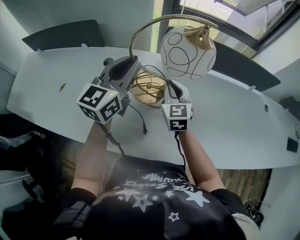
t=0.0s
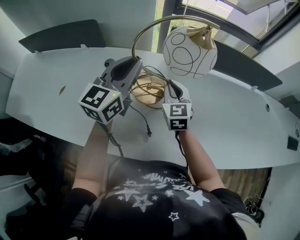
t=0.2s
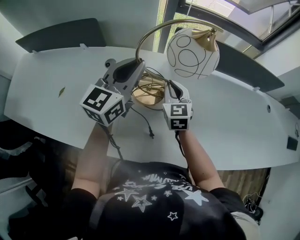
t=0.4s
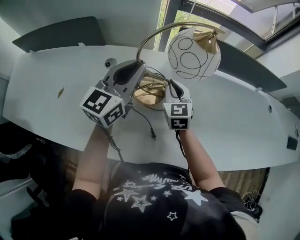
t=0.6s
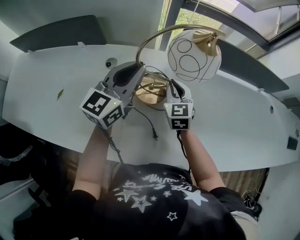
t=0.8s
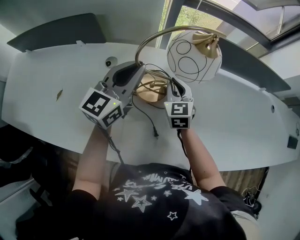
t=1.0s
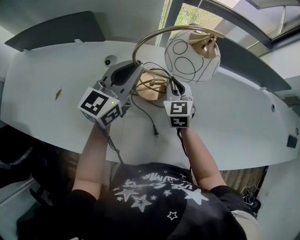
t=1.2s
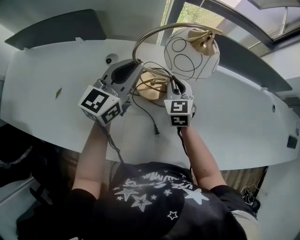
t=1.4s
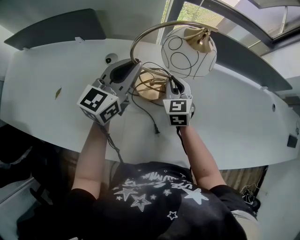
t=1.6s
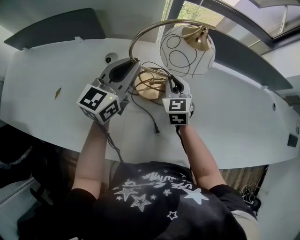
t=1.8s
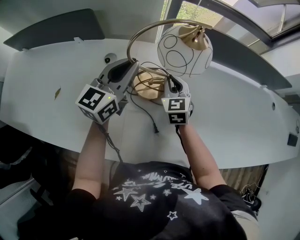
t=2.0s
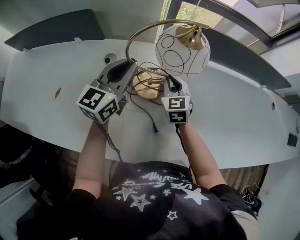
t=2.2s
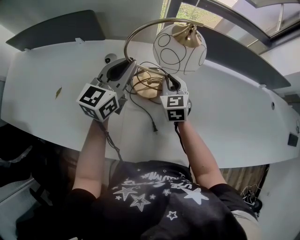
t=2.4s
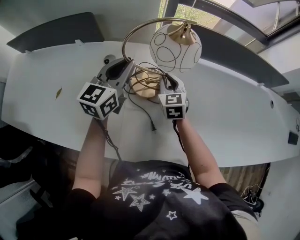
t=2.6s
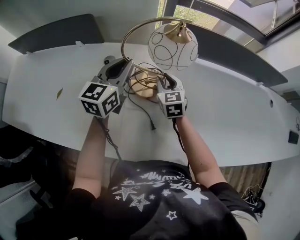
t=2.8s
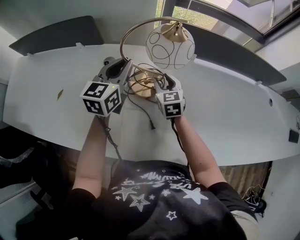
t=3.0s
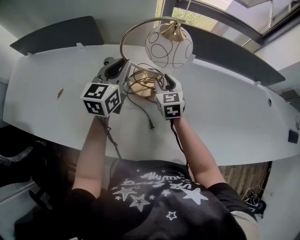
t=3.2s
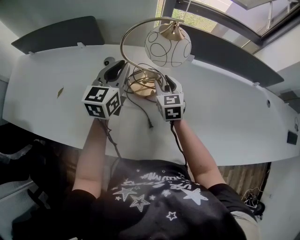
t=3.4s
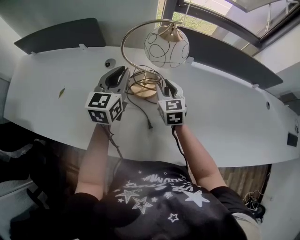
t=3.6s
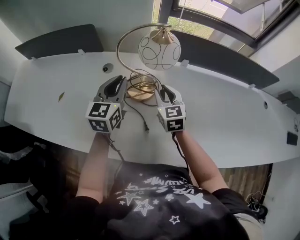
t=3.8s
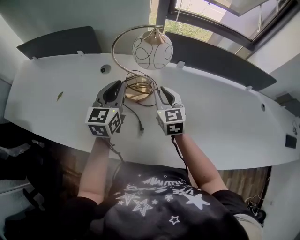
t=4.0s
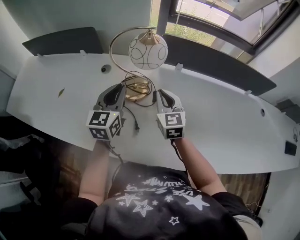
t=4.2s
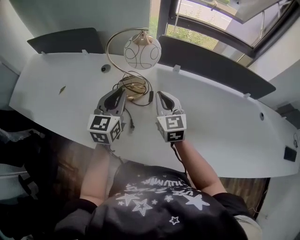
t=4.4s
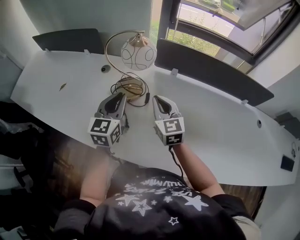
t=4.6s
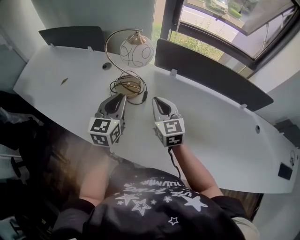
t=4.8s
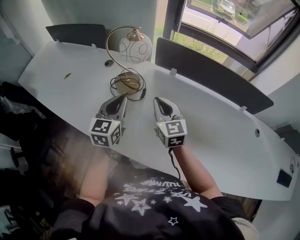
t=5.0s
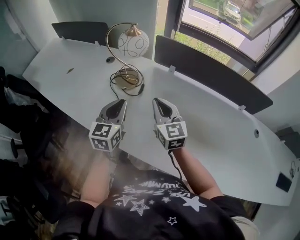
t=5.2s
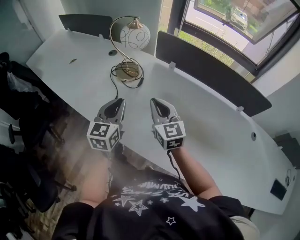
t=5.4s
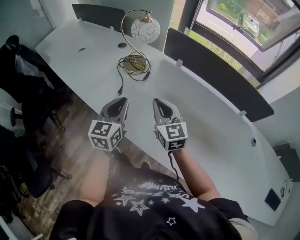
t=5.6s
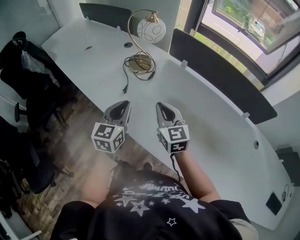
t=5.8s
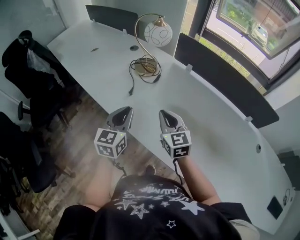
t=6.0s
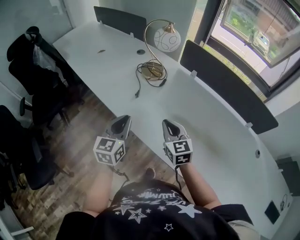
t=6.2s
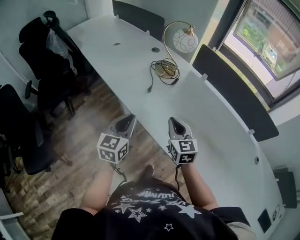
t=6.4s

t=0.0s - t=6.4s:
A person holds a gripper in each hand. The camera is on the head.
t=0.0s - t=1.6s: The two grippers go approximately 15 cm downward, to the left and forward.
t=1.6s - t=3.2s: The right gripper opens up.
t=3.2s - t=4.8s: The right gripper travels backward, upward and to the right by roughly 20 cm, changes its angle by about 20 degrees, and closes its fingers. The left gripper goes approximately 20 cm backward and to the right.
t=4.8s - t=6.4s: Both grippers travel together backward, some 25 cm. The left gripper changes its angle by about 20 degrees.

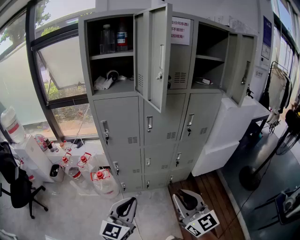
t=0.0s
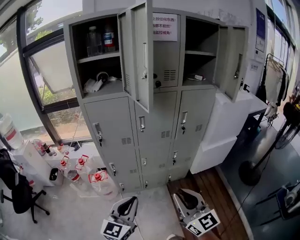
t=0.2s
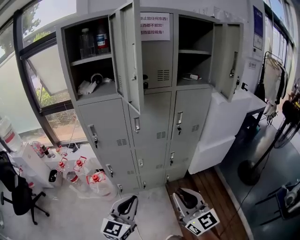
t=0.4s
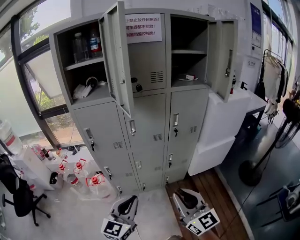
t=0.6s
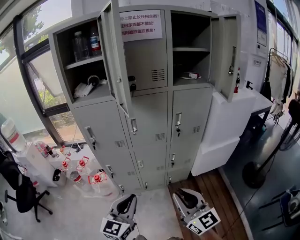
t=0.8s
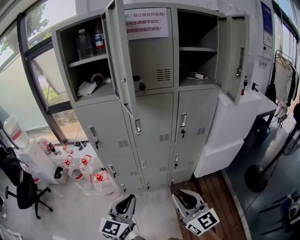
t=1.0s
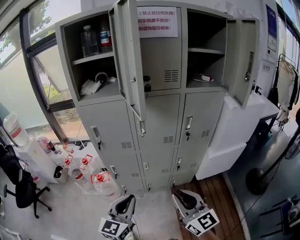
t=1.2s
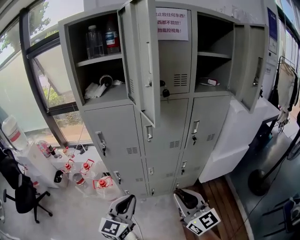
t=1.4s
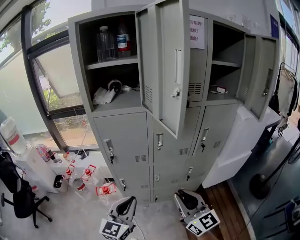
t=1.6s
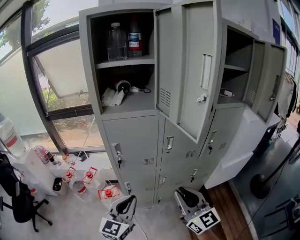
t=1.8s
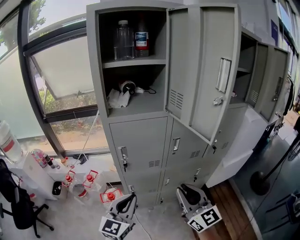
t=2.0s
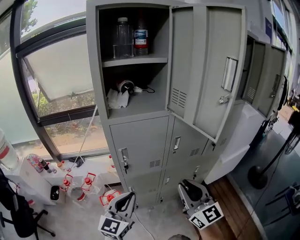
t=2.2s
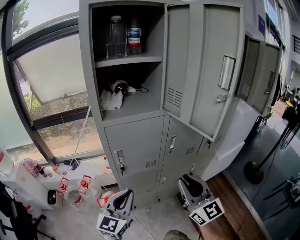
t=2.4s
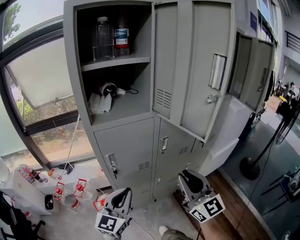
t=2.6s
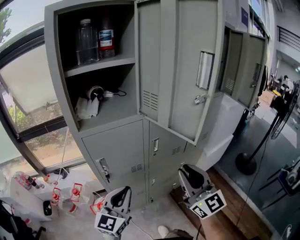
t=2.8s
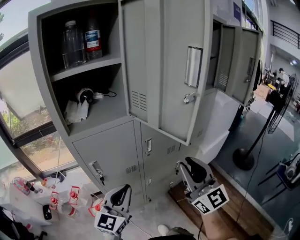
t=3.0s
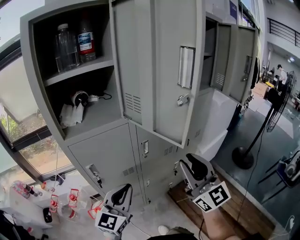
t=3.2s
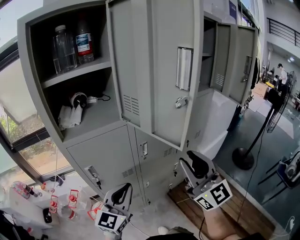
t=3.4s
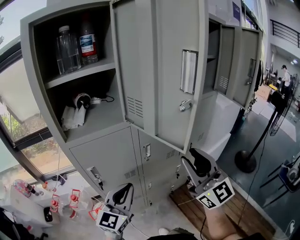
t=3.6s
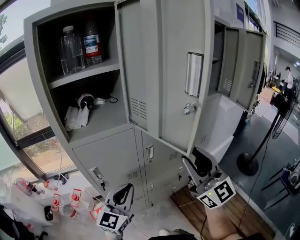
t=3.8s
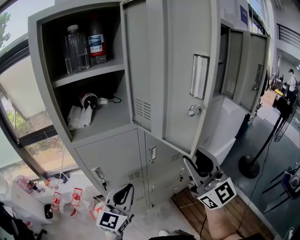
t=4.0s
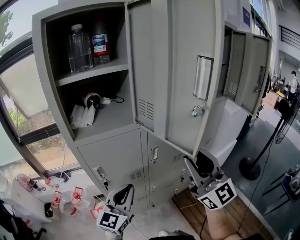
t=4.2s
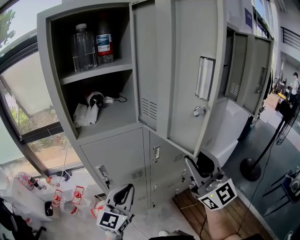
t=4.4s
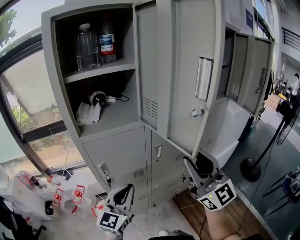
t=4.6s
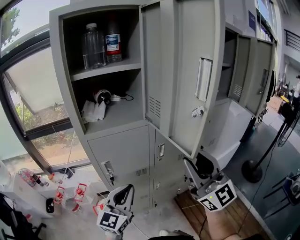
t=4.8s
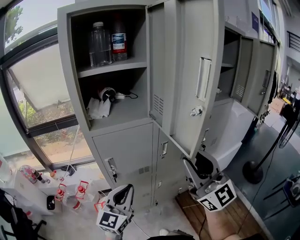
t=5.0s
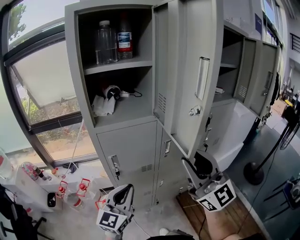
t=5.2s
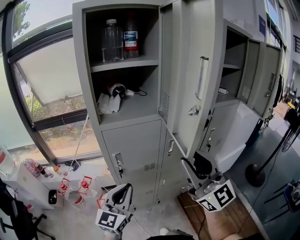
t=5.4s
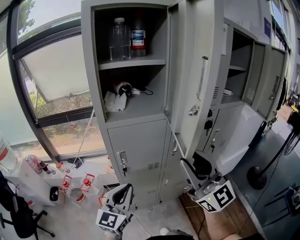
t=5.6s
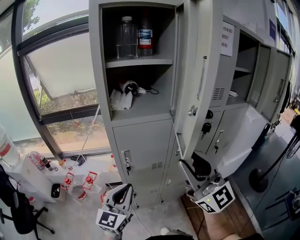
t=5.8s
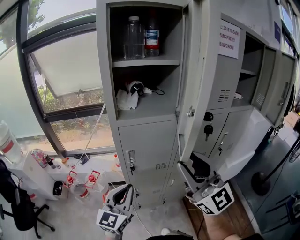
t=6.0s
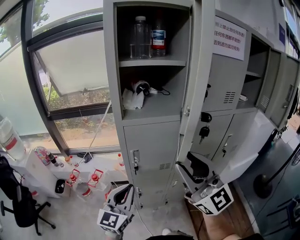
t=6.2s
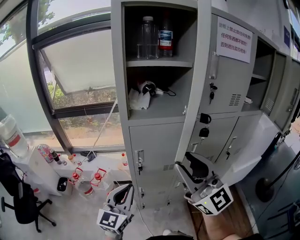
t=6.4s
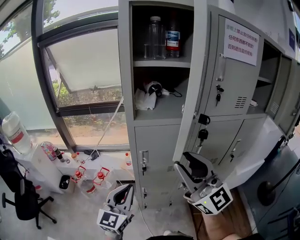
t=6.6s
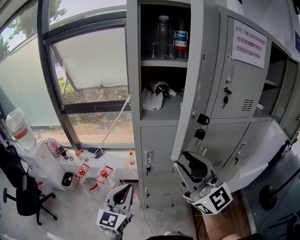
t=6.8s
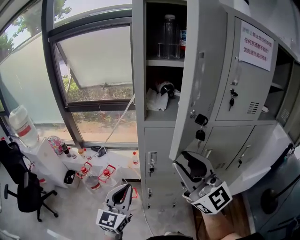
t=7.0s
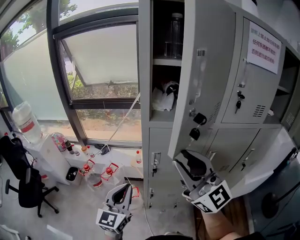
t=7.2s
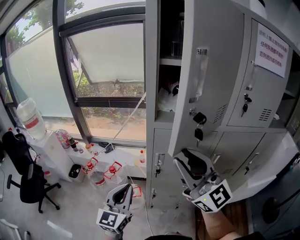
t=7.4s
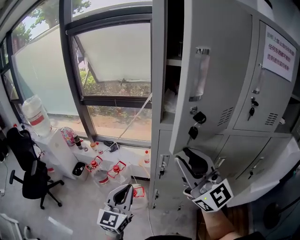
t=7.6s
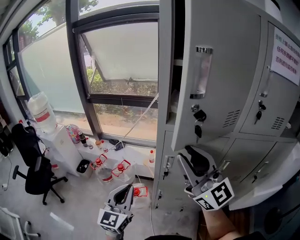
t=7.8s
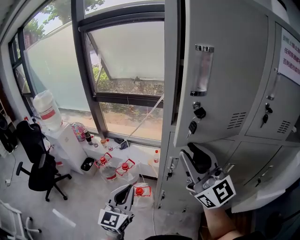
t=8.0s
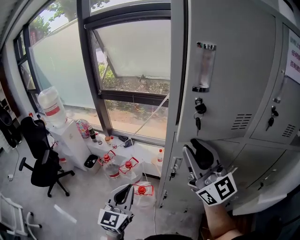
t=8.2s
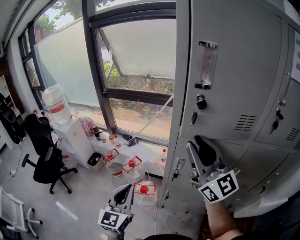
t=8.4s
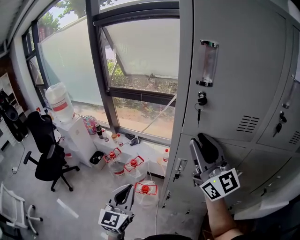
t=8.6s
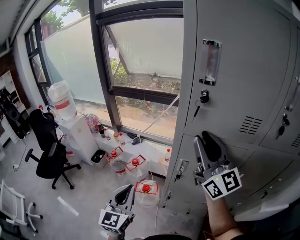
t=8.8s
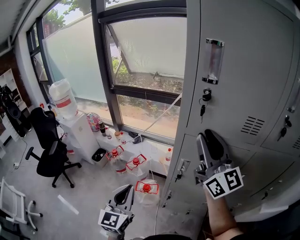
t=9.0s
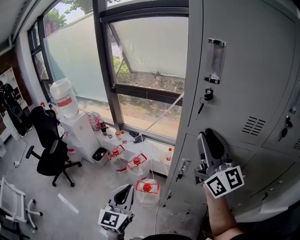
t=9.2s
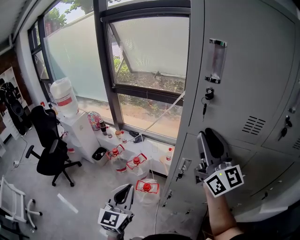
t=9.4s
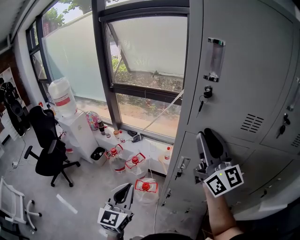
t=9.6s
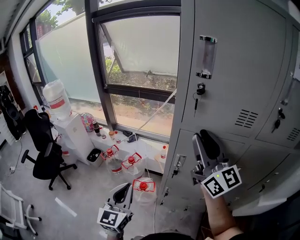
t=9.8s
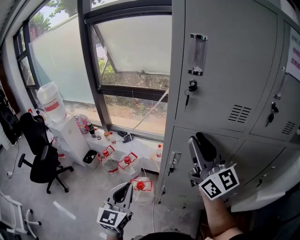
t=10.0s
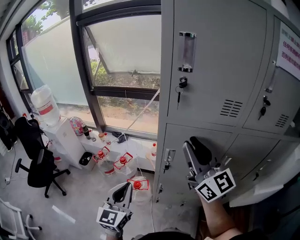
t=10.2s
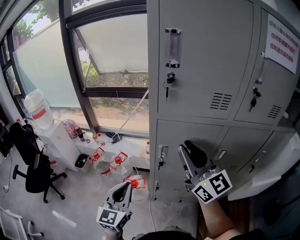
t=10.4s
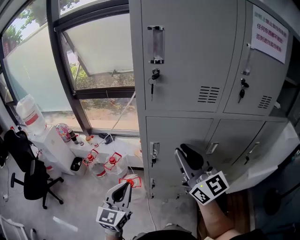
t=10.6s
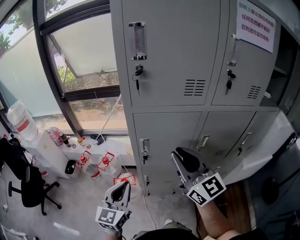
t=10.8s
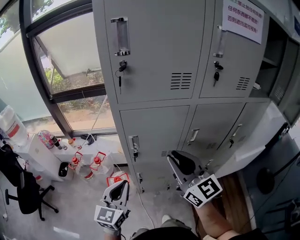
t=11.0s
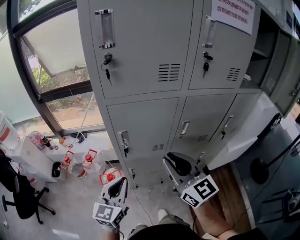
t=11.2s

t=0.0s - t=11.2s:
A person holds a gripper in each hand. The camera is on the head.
t=0.0s - t=1.6s: The two grippers go roughly 15 cm forward.
t=1.6s - t=3.2s: The left gripper is displaced forward by some 15 cm, travels to the left and back again, roughly 15 cm each way, and swivels approximately 20 degrees; the right gripper travels upward and forward by some 15 cm, travels to the left and back again, approximately 15 cm each way, and turns by about 30 degrees.
t=3.2s - t=4.8s: The right gripper goes about 5 cm upward.
t=4.8s - t=6.4s: The two grippers go roughly 15 cm to the left.
t=6.4s - t=8.0s: The left gripper heads to the left, covering about 10 cm, and rotates roughly 20 degrees, while the right gripper moves forward and to the left, some 15 cm.
t=8.0s - t=9.6s: The right gripper shifts about 5 cm forward.
t=9.6s - t=11.2s: The left gripper shifts about 15 cm to the right, and turns by approximately 30 degrees, while the right gripper is displaced backward, downward and to the right by some 25 cm, and swivels about 30 degrees.

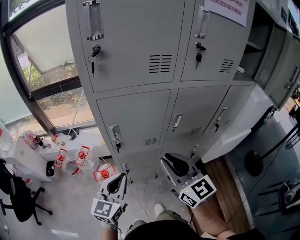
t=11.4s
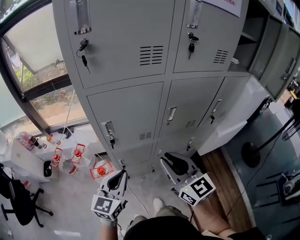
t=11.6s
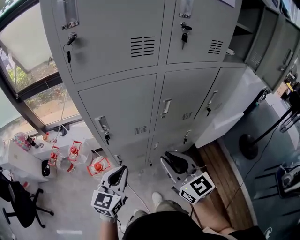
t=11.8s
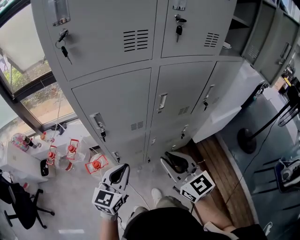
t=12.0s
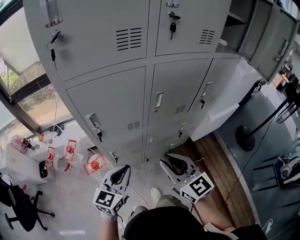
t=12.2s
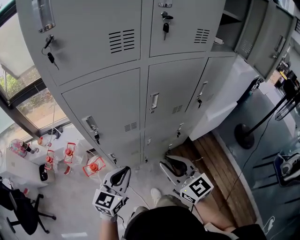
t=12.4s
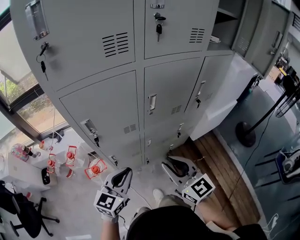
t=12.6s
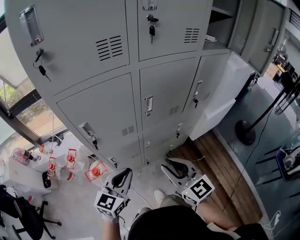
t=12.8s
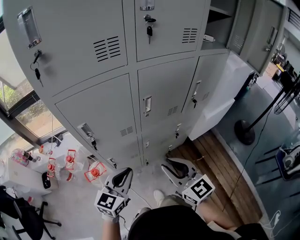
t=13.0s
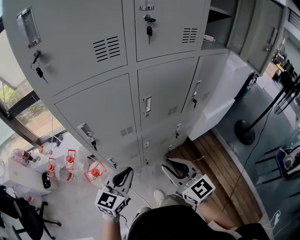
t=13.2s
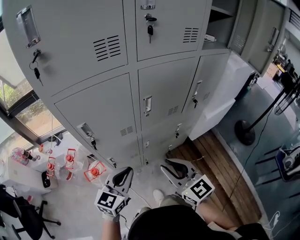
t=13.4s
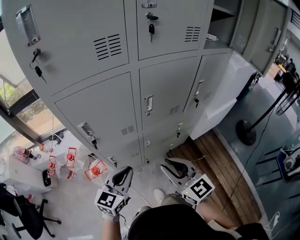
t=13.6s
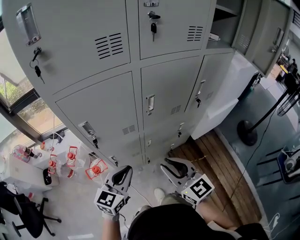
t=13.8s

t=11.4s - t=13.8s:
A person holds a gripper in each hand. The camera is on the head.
t=11.4s - t=12.6s: The right gripper travels downward and to the right by approximately 10 cm. The left gripper heads to the right and downward, covering some 10 cm, and changes its angle by some 20 degrees.
t=12.6s - t=13.8s: The grippers stay close to where they were, moving slightly.

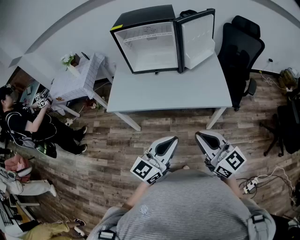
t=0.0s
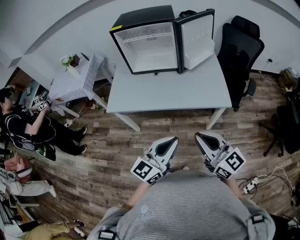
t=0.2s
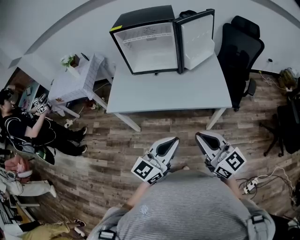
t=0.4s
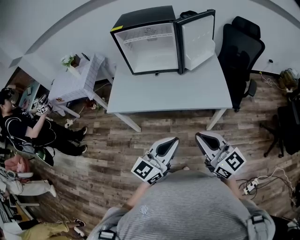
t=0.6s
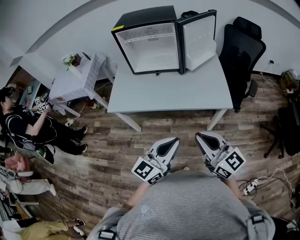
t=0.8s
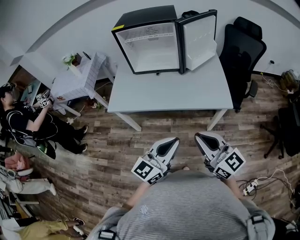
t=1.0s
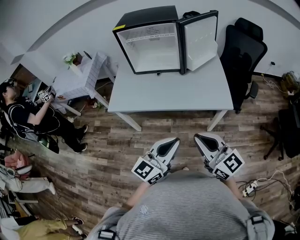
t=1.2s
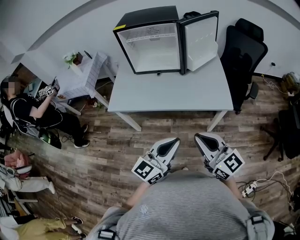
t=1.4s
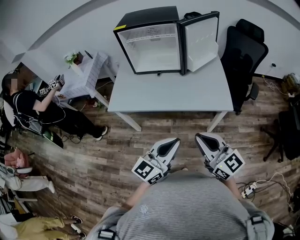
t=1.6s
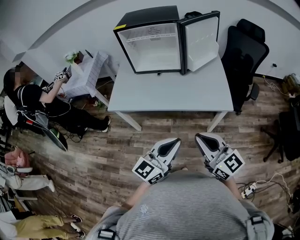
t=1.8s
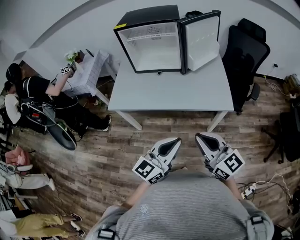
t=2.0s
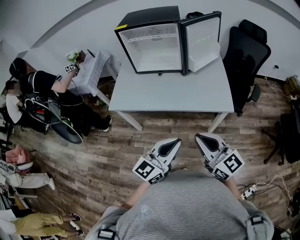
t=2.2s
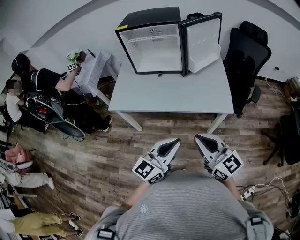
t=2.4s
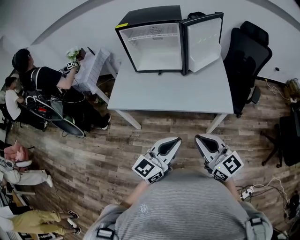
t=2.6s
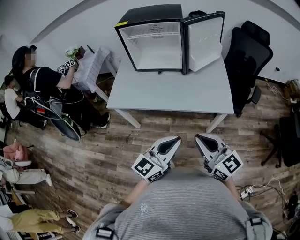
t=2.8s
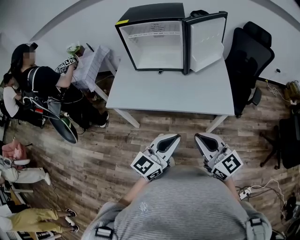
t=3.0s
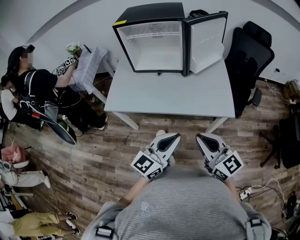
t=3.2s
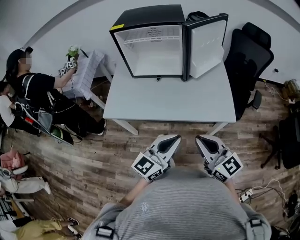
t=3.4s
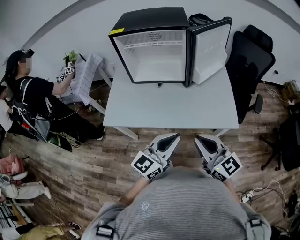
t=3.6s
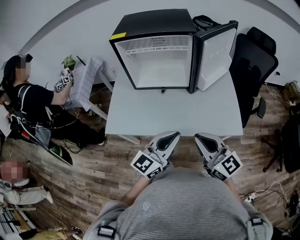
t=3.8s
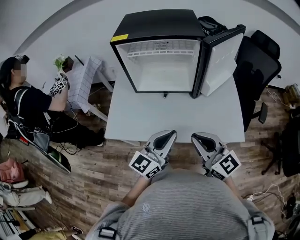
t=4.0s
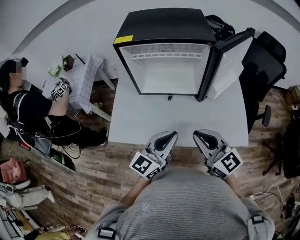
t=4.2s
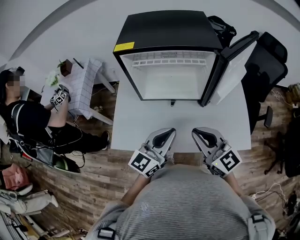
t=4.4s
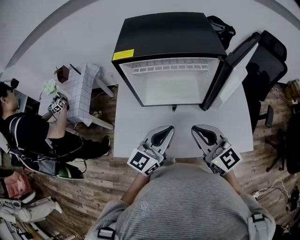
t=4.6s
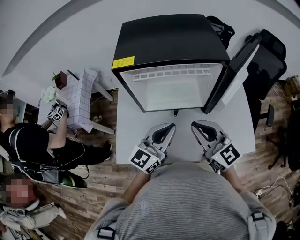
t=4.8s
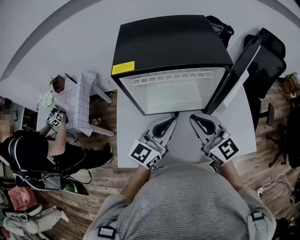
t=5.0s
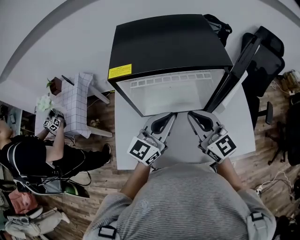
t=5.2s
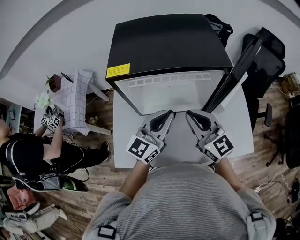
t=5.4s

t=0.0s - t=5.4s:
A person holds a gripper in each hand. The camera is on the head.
t=0.0s - t=1.4s: Both grippers stay put.
t=1.4s - t=2.8s: There are only small adjustments of the grippers.
t=2.8s - t=4.0s: Both grippers move forward and to the left, about 25 cm.
t=4.0s - t=5.4s: Both grippers travel together forward, about 25 cm.
